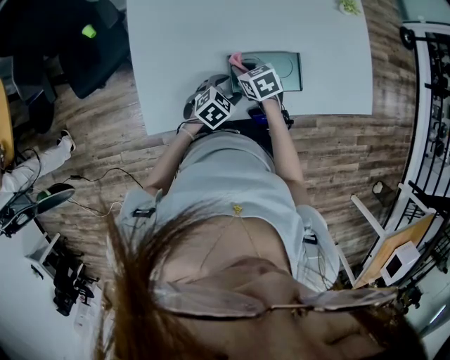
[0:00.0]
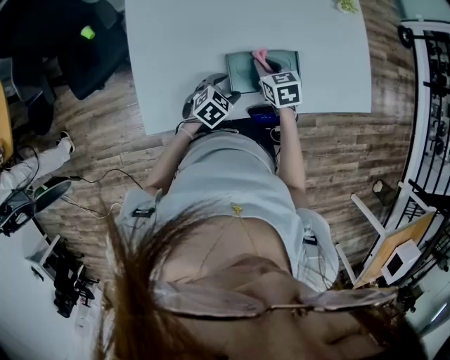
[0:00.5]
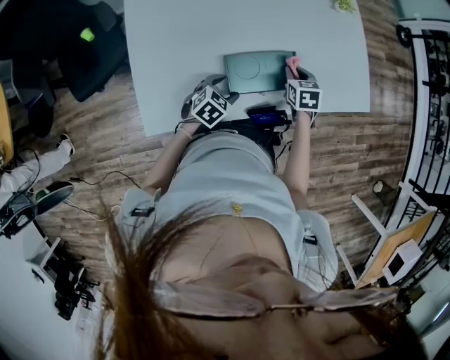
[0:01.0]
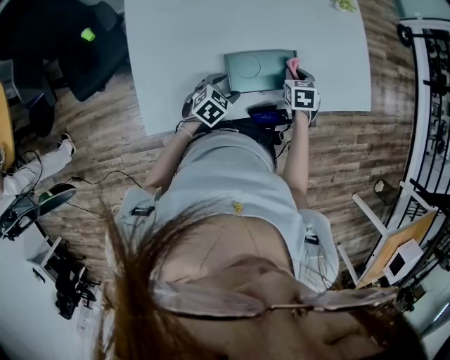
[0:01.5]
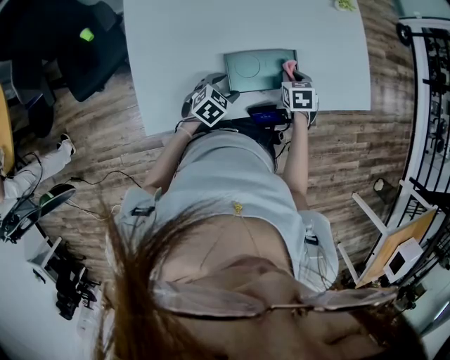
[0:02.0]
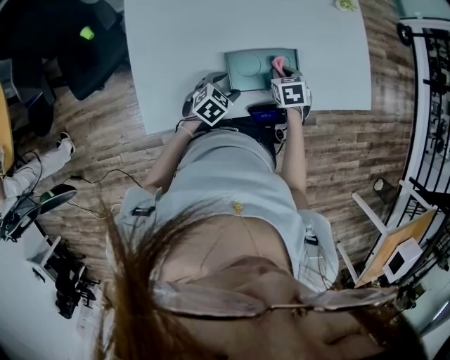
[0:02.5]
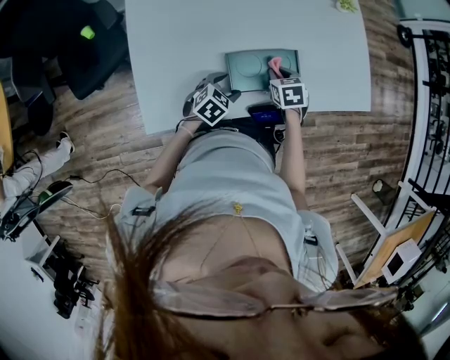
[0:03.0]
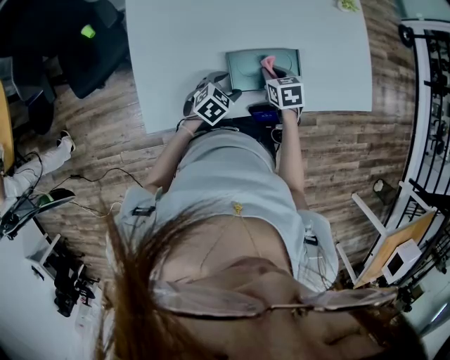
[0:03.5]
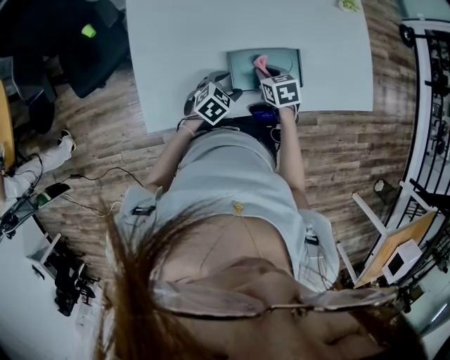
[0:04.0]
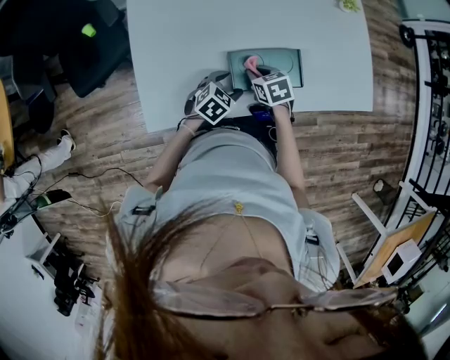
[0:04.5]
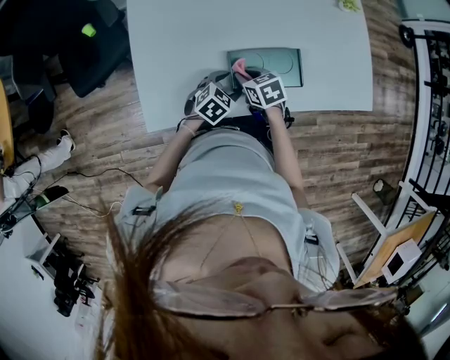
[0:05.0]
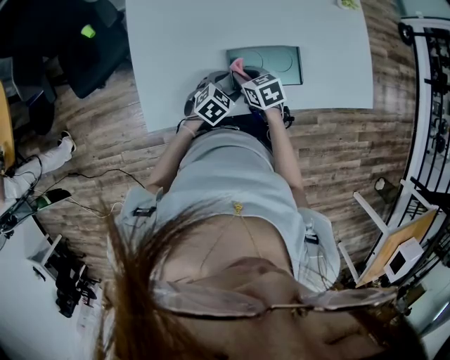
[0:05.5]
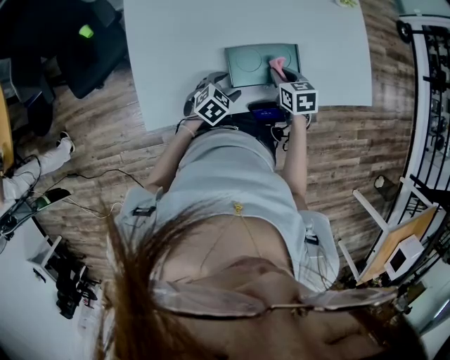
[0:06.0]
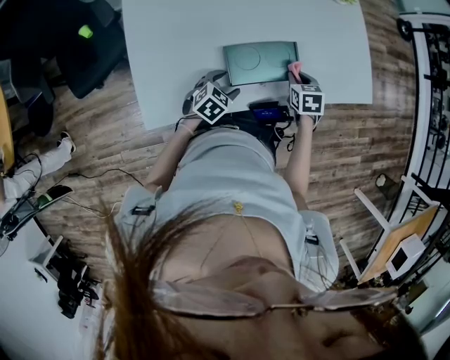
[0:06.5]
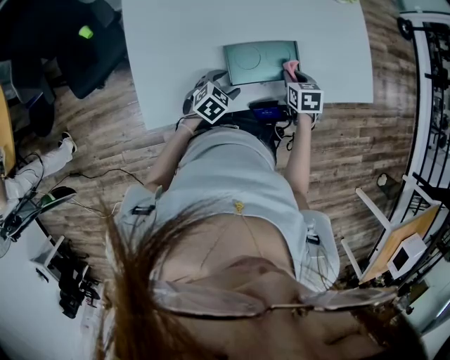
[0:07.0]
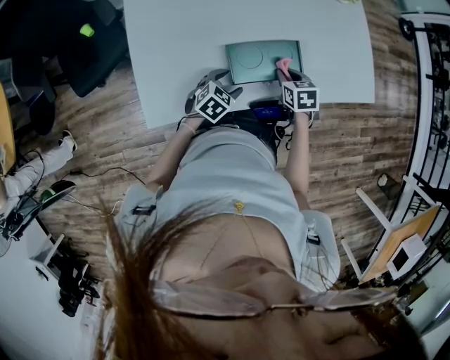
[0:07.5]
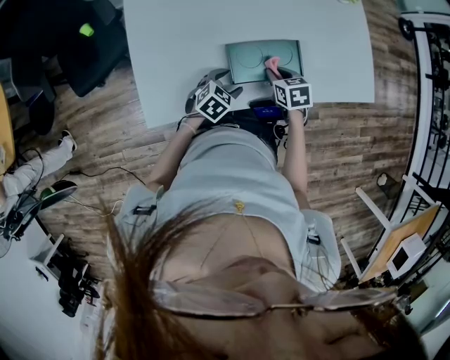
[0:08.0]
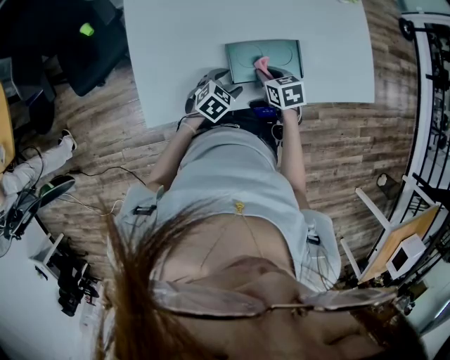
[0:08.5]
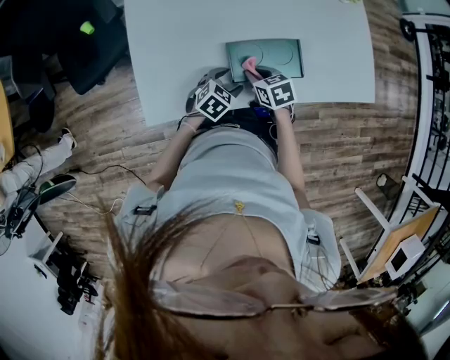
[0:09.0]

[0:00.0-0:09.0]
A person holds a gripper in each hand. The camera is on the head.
0:00.0 to 0:02.0: The right gripper heads to the right, covering roughly 20 cm, and changes its angle by approximately 30 degrees.
0:02.0 to 0:04.5: The right gripper is displaced to the left by approximately 15 cm, and swivels roughly 20 degrees.
0:04.5 to 0:07.0: The right gripper goes roughly 15 cm to the right.
0:07.0 to 0:09.0: The right gripper goes approximately 15 cm to the left, and swivels about 20 degrees.

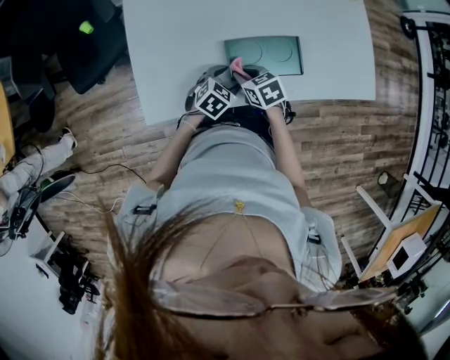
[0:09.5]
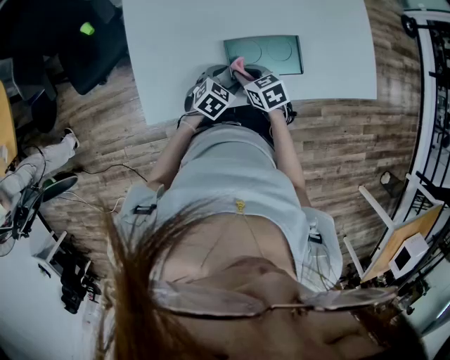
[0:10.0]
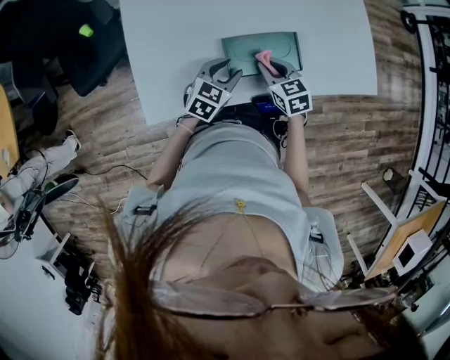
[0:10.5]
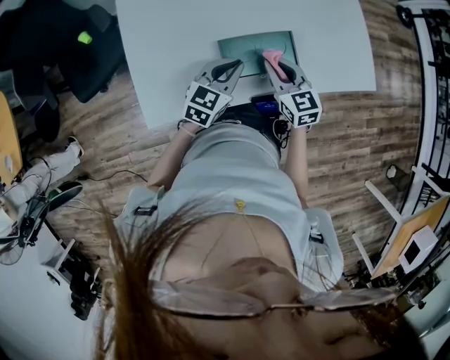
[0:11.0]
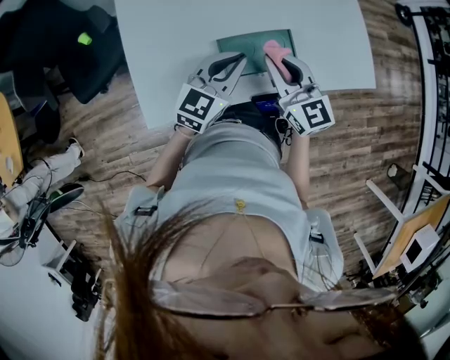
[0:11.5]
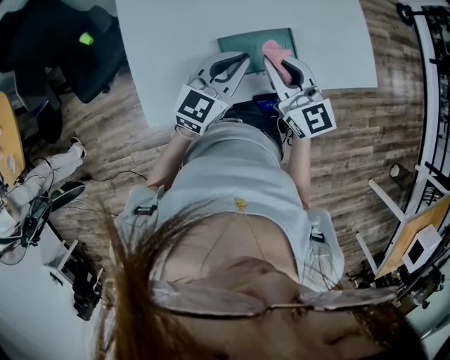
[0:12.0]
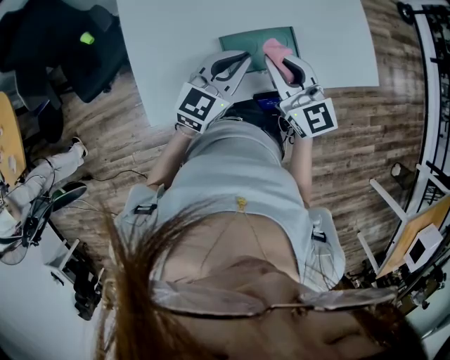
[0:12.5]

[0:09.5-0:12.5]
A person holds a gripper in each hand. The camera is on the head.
0:09.5 to 0:11.0: The left gripper travels upward by roughly 15 cm, changes its angle by approximately 30 degrees, and closes up. The right gripper moves upward and to the right, approximately 15 cm, and changes its angle by roughly 30 degrees.
0:11.0 to 0:12.5: The grippers both shift upward by roughly 10 cm.

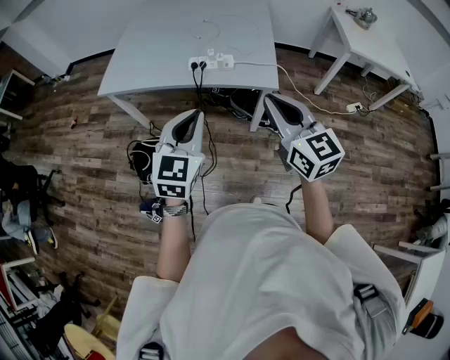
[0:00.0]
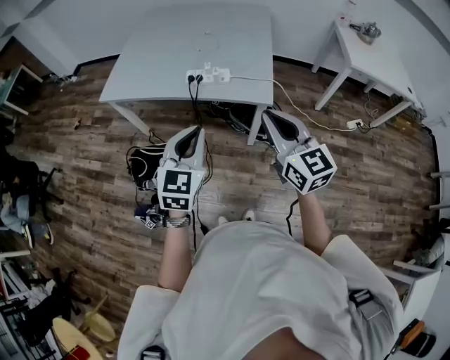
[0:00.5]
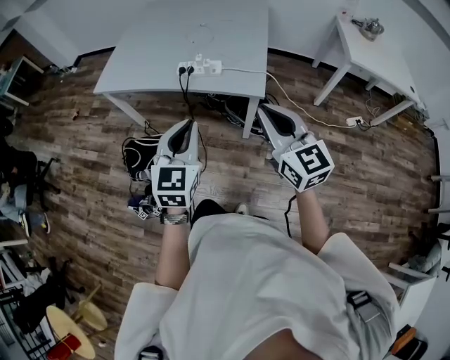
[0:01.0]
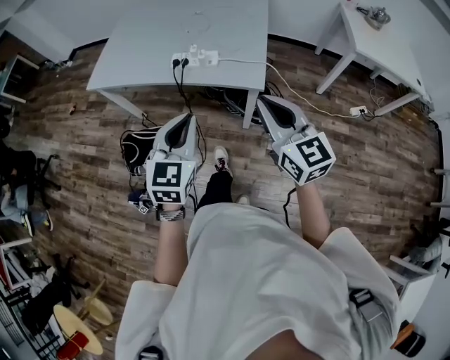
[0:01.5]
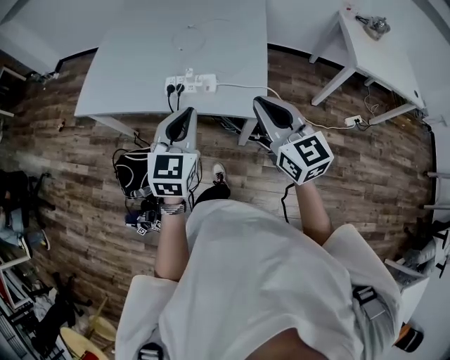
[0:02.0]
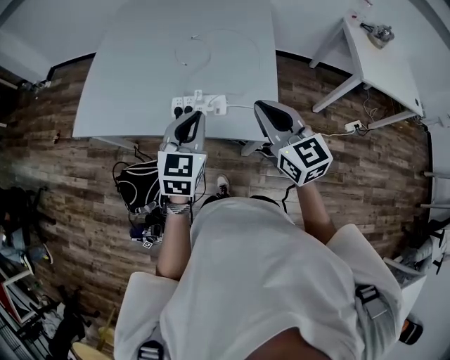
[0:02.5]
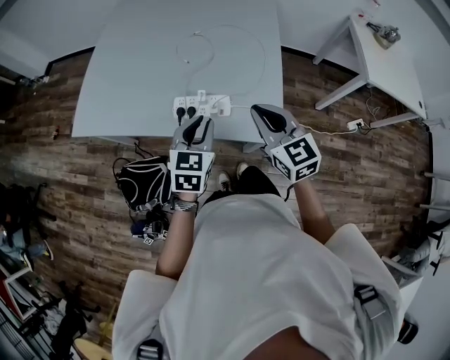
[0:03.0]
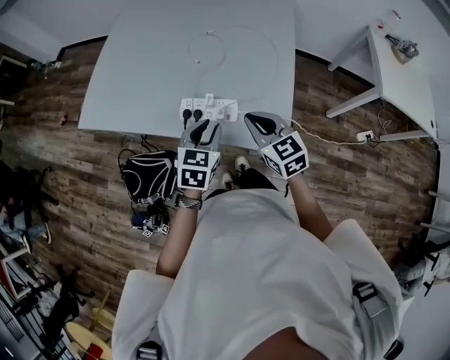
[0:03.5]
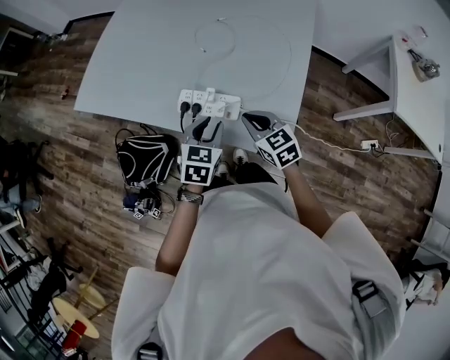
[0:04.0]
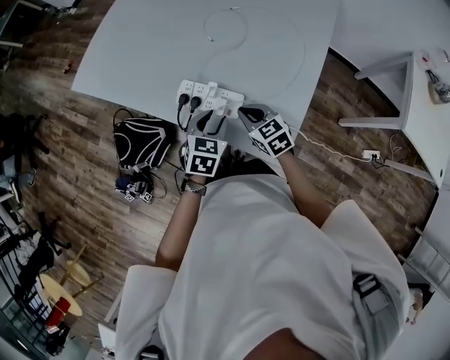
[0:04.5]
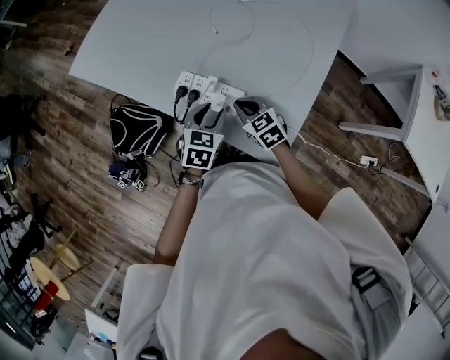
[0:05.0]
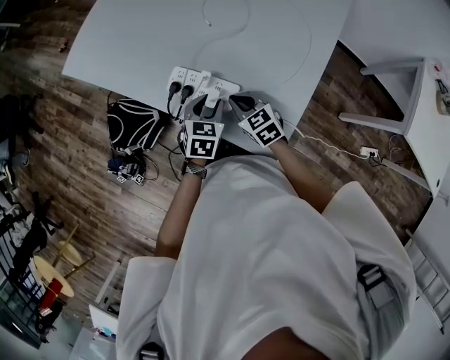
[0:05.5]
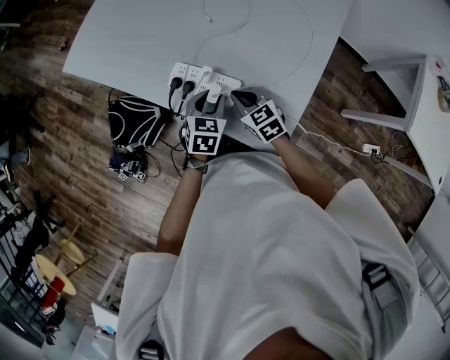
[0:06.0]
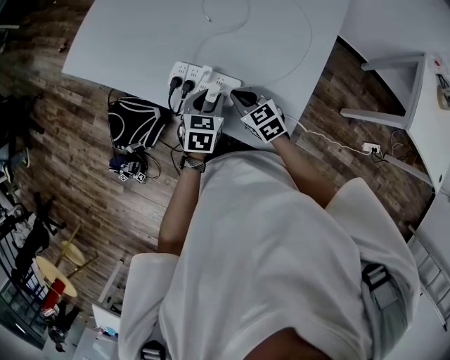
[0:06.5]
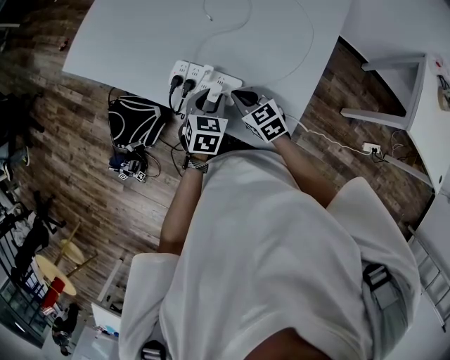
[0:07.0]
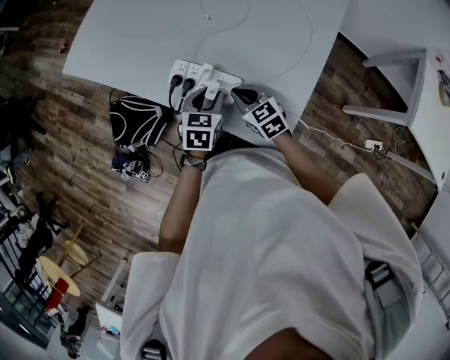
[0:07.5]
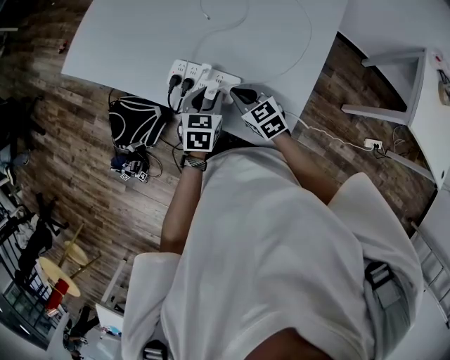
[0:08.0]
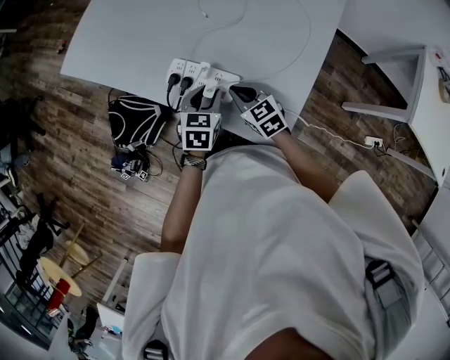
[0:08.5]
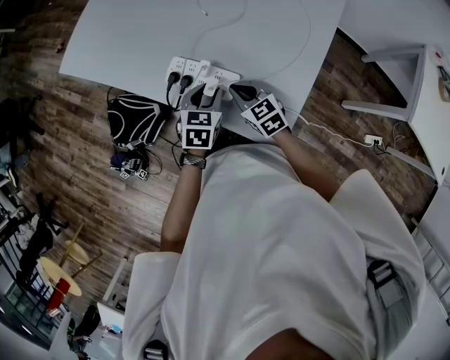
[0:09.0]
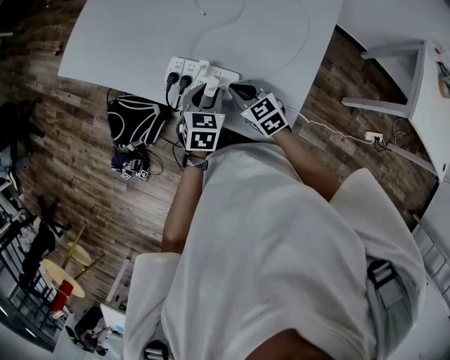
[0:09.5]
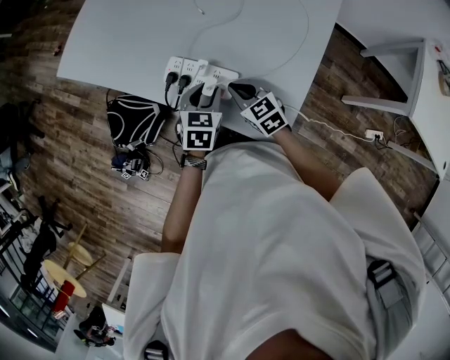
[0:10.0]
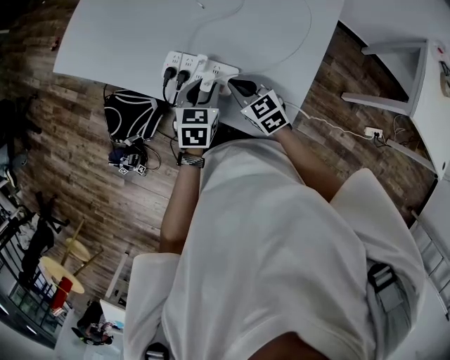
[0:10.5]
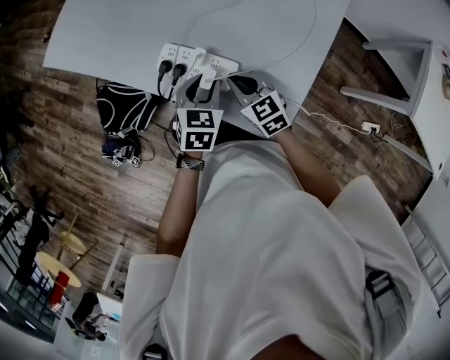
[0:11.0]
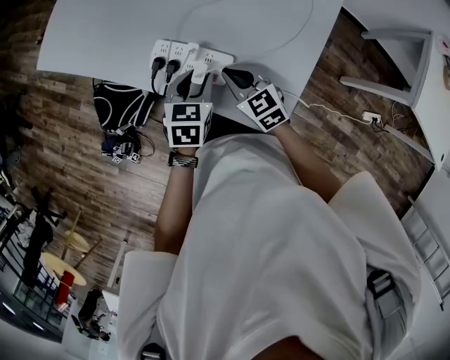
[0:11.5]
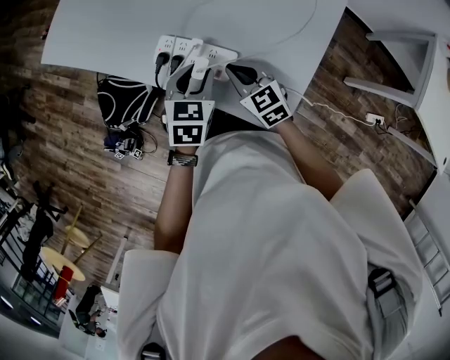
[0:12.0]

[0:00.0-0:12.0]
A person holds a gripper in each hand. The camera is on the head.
0:00.0 to 0:02.0: The two grippers go some 20 cm forward and to the right.
0:02.0 to 0:04.0: Both grippers travel together downward and forward, roughly 30 cm. The right gripper rotates roughly 30 degrees, while the left gripper turns by some 30 degrees, and opens its fingers.
0:04.0 to 0:06.0: The two grippers go some 10 cm downward.
0:06.0 to 0:12.0: The grippers stay close to where they were, moving slightly.

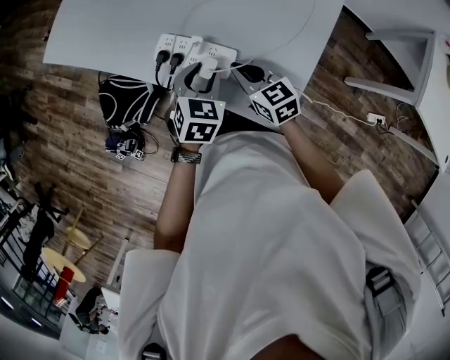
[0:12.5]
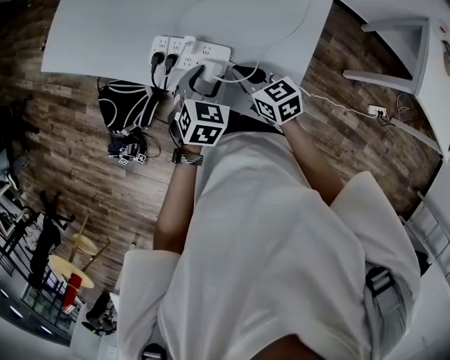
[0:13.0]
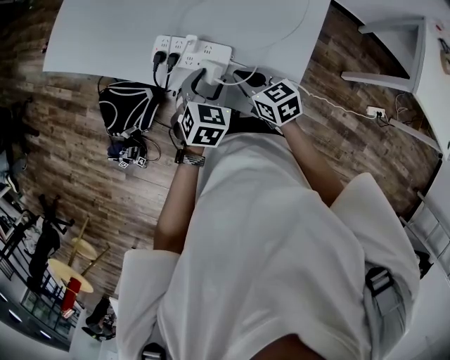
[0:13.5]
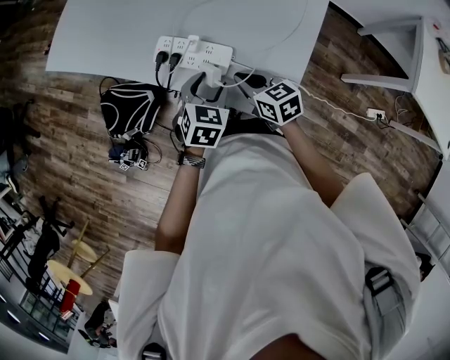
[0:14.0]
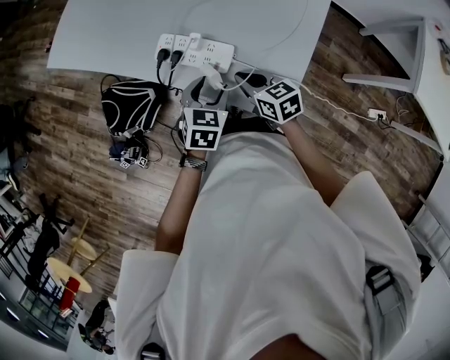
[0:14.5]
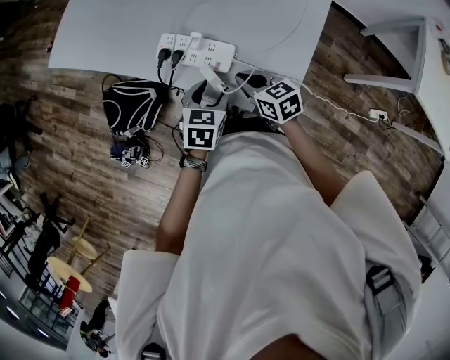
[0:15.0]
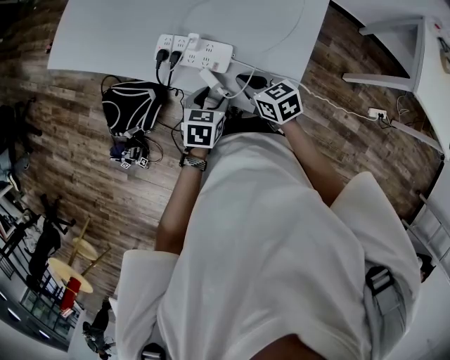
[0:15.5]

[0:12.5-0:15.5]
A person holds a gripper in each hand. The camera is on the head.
0:12.5 to 0:14.0: The left gripper shifts by some 5 cm, while the right gripper shifts by some 5 cm.
0:14.0 to 0:15.5: The left gripper changes place by approximately 5 cm.
